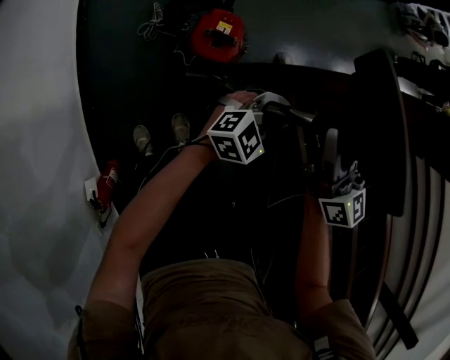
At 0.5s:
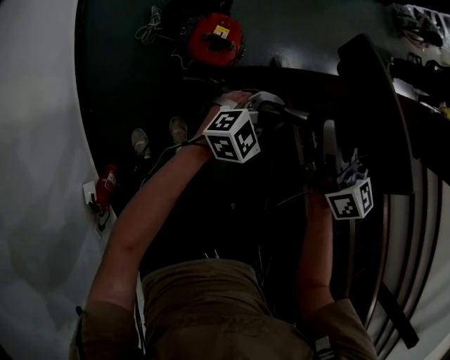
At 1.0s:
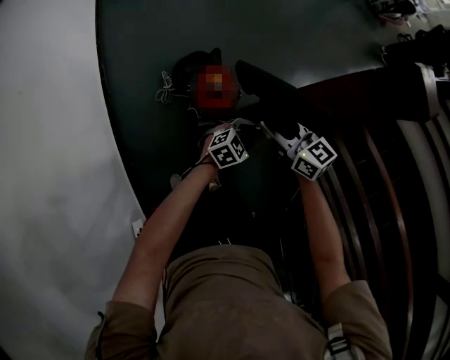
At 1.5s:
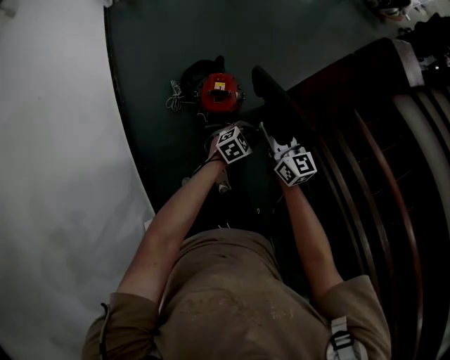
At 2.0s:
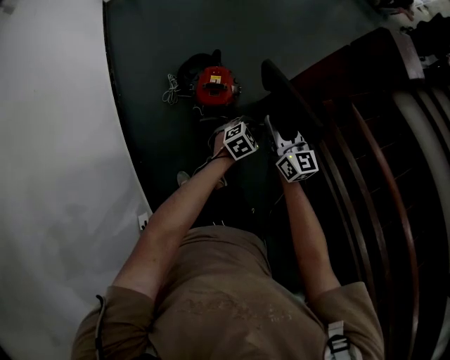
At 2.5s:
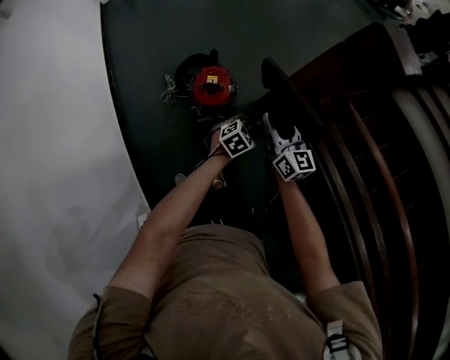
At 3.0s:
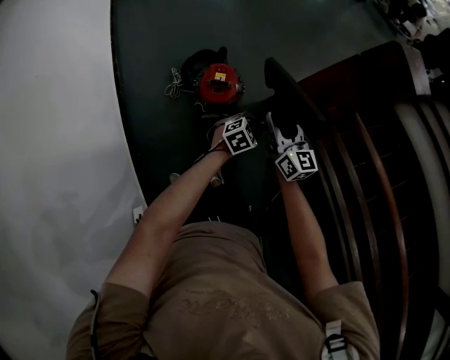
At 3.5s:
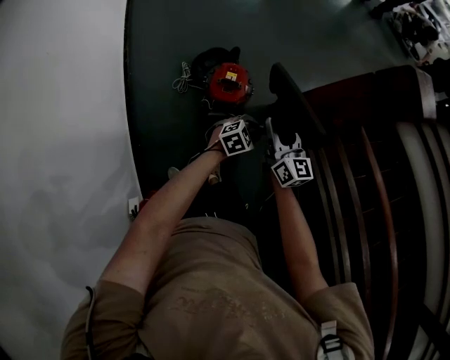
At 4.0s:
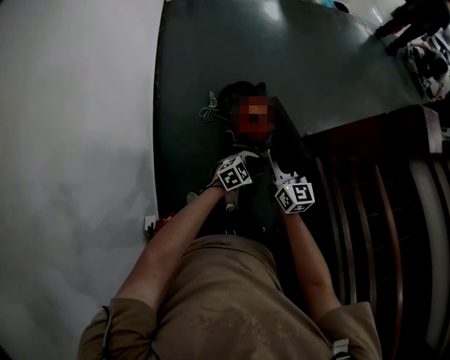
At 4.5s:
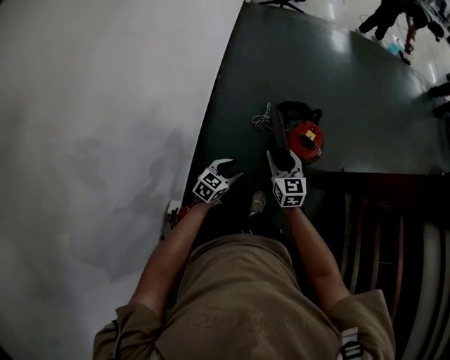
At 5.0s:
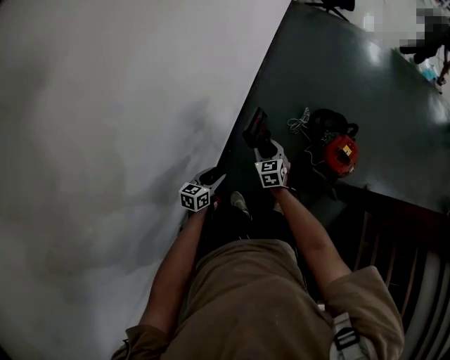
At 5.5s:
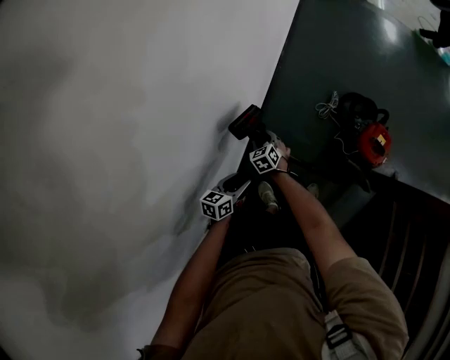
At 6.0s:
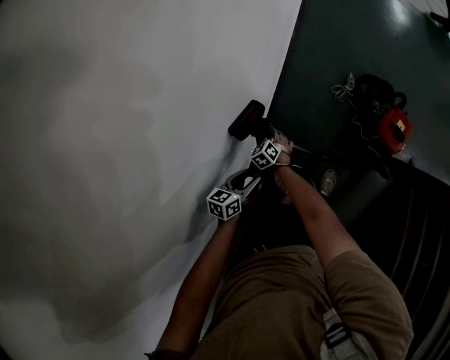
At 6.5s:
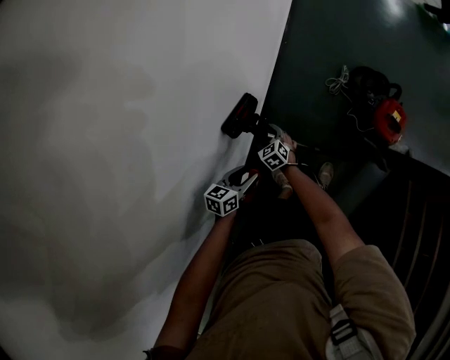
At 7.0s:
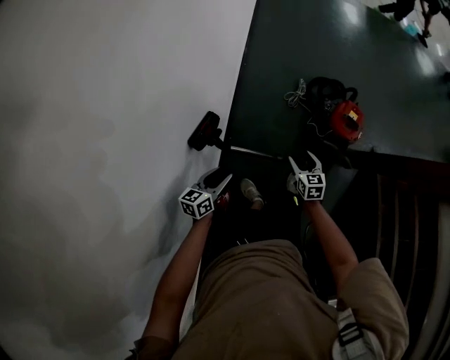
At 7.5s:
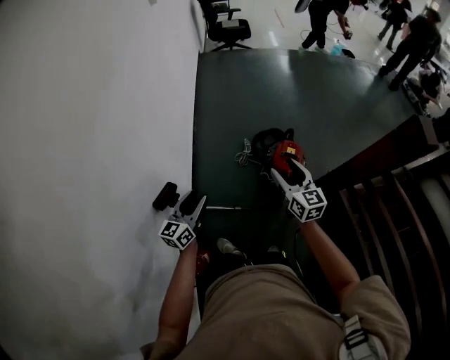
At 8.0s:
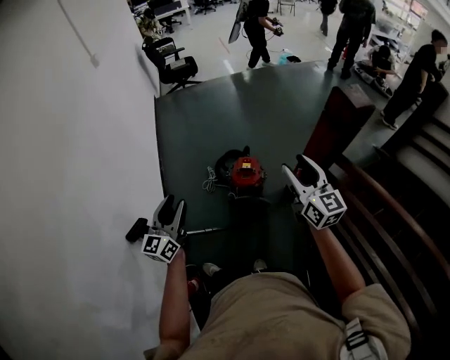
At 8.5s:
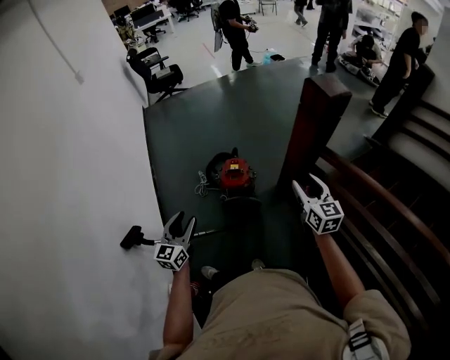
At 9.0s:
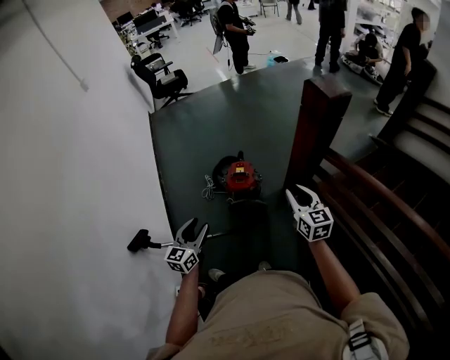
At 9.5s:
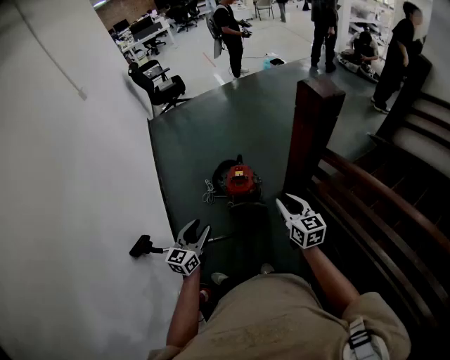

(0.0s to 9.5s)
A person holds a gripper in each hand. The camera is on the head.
0.0s - 2.0s: The grippers both shift to the right by approximately 5 cm. The left gripper angles its fingers downward, by roughly 30 degrees.
2.0s - 4.0s: The grippers both shift to the left and backward by roughly 10 cm.
4.0s - 5.5s: The pair of grippers is taken some 70 cm. The left gripper changes its angle by approximately 80 degrees, while the right gripper points its fingers some 40 degrees further downward.
5.5s - 7.5s: The right gripper heads upward and to the right, covering about 60 cm, and tilts its fingers some 40 degrees upward. The left gripper travels upward and to the right by about 30 cm, and swivels about 40 degrees.
7.5s - 9.5s: The right gripper is displaced to the right and backward by about 40 cm, and closes its fingers. Meanwhile the left gripper shifts approximately 30 cm to the right, and rotates approximately 20 degrees.

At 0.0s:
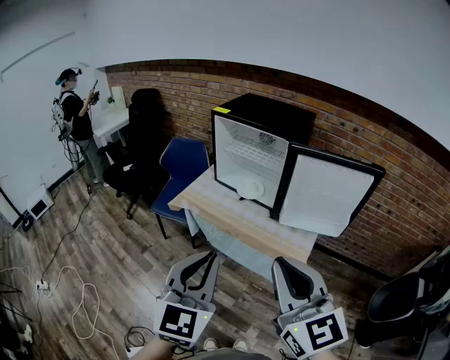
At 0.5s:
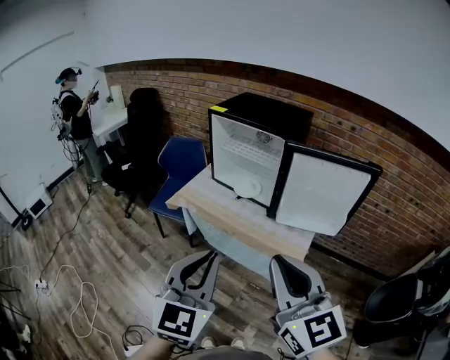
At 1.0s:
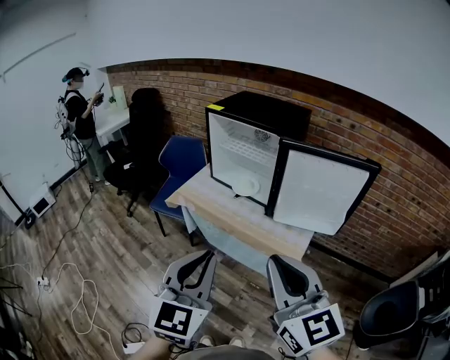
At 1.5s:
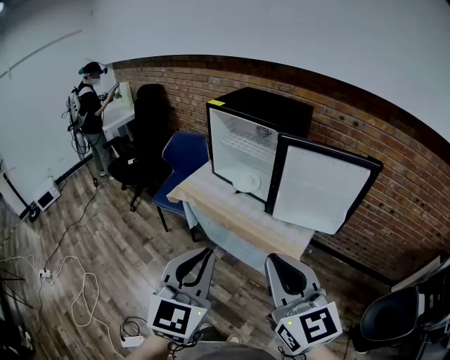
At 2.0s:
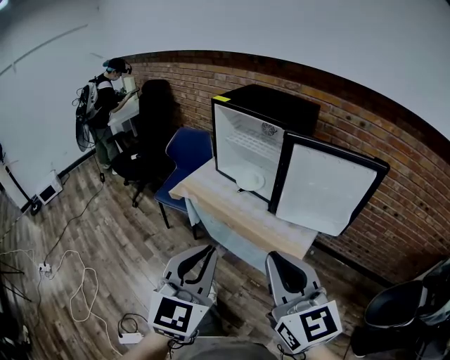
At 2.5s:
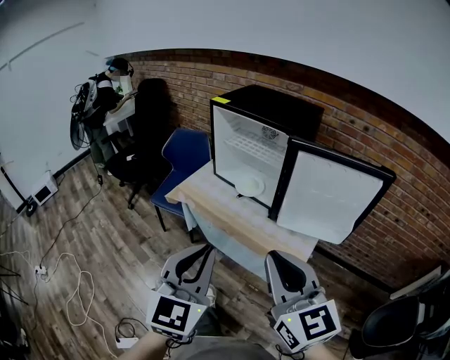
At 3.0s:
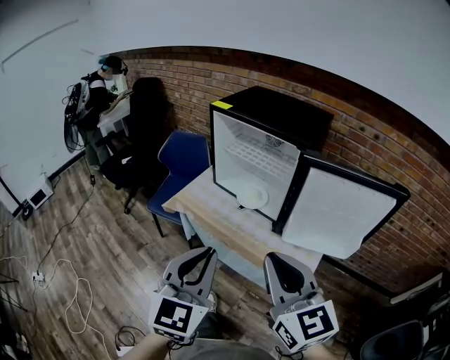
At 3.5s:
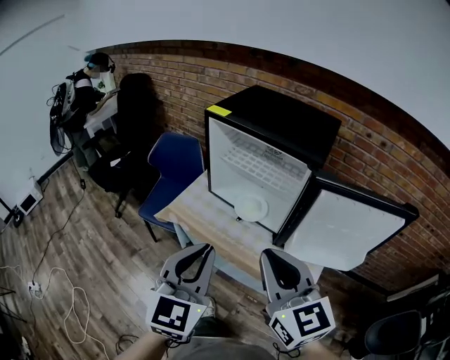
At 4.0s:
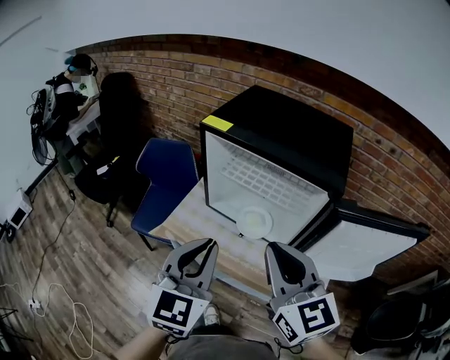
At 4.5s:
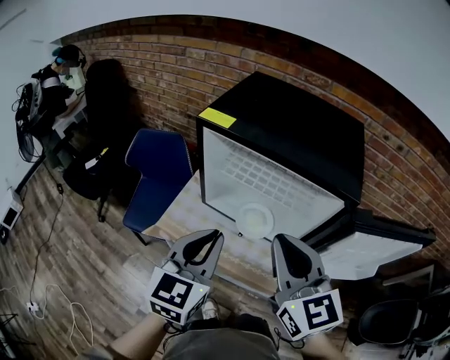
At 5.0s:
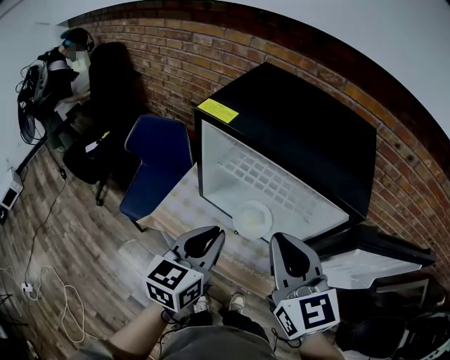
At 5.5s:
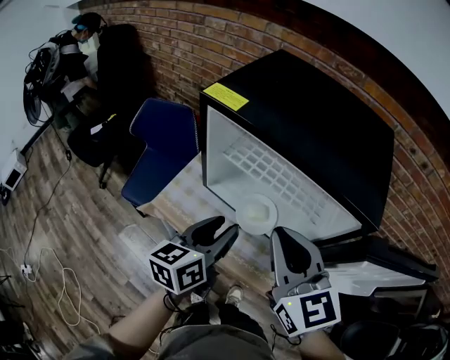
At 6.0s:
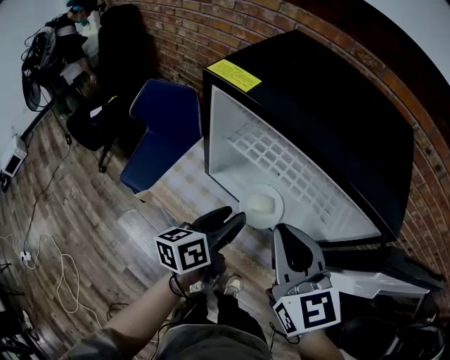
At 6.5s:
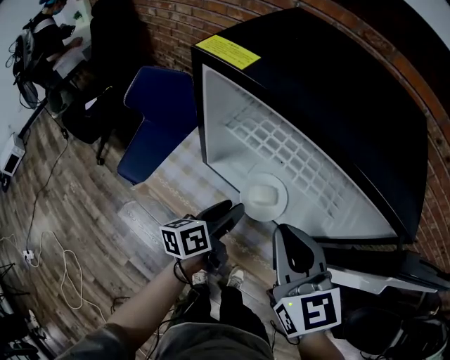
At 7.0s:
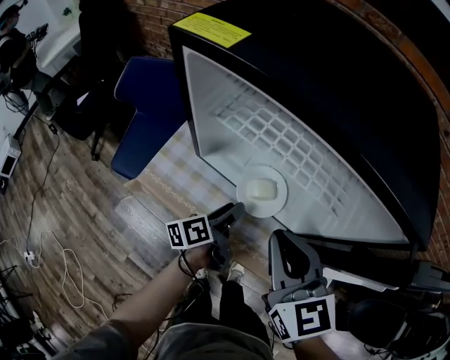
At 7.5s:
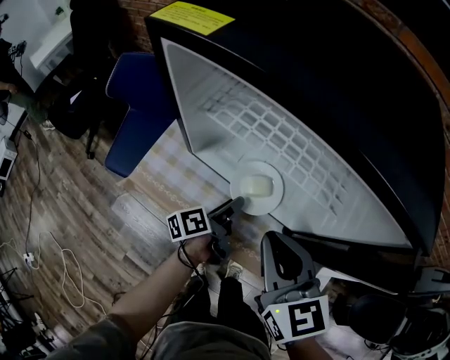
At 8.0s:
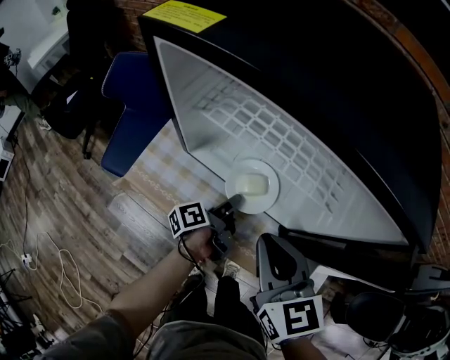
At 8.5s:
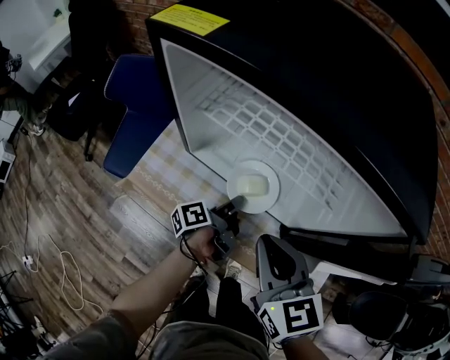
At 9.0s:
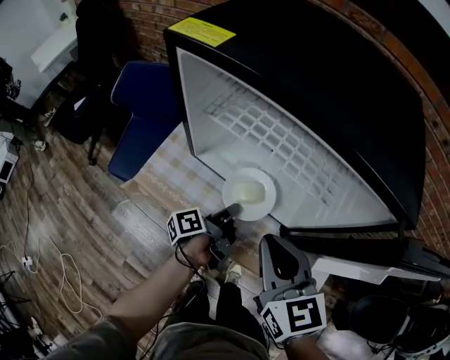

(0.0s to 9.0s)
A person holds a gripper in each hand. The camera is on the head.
0.0s - 2.0s: The left gripper is displaced to the right by some 5 cm, while the right gripper moves about 5 cm.
2.0s - 4.5s: Both grippers are carried forward, about 40 cm. The left gripper swivels about 20 degrees.
4.5s - 7.0s: The right gripper goes some 15 cm downward, while the left gripper goes roughly 30 cm downward, rotates around the line of its fingers by some 70 degrees, counterclockwise from behind, and opens.
7.0s - 9.0s: The left gripper rotates approximately 20 degrees, and closes.

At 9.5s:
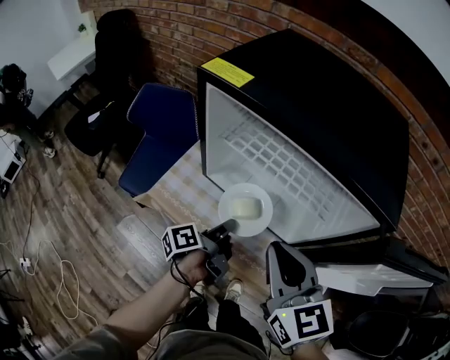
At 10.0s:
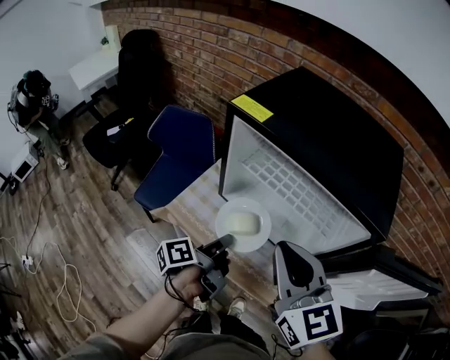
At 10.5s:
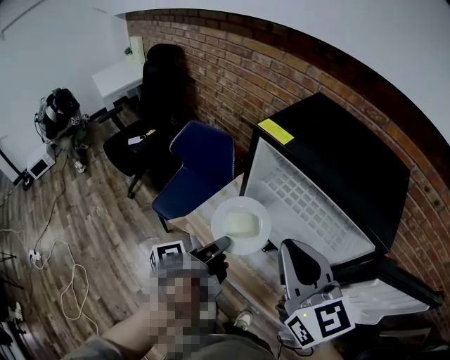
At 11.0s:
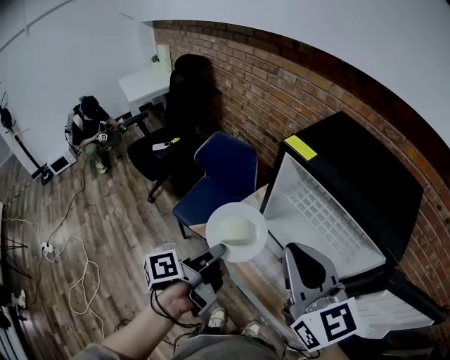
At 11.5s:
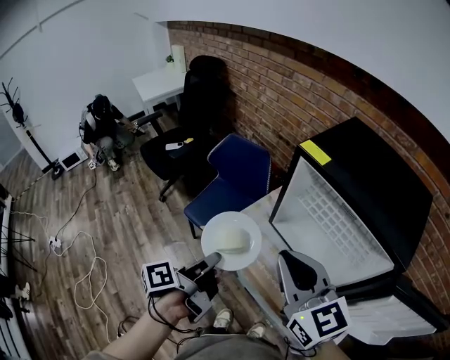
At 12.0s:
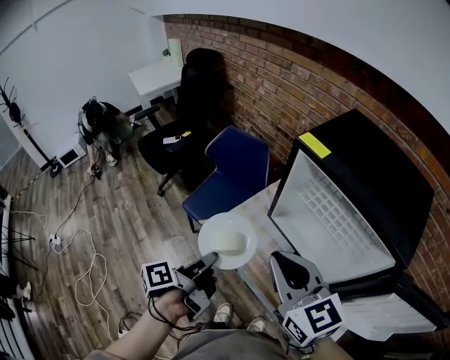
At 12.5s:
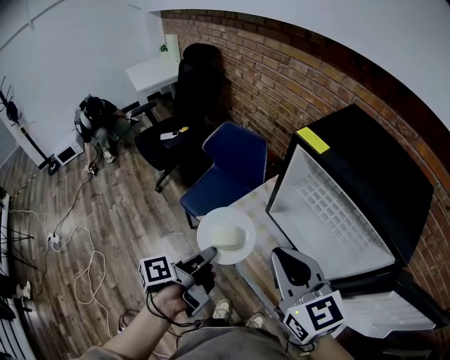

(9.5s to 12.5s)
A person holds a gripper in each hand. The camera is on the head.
9.5s - 11.0s: The left gripper is displaced to the left, upward and backward by some 25 cm. Meanwhile the right gripper is displaced upward and to the left by approximately 20 cm, and turns by roughly 30 degrees.
11.0s - 12.5s: The left gripper moves approximately 5 cm, while the right gripper moves downward, roughly 5 cm.

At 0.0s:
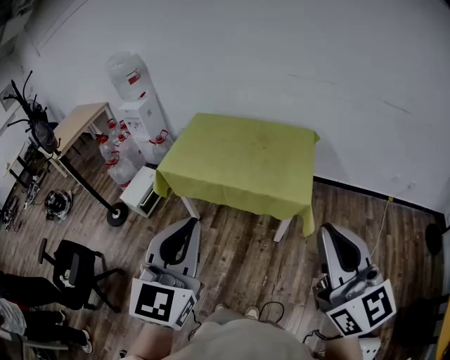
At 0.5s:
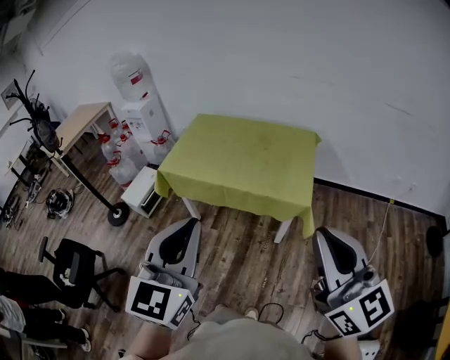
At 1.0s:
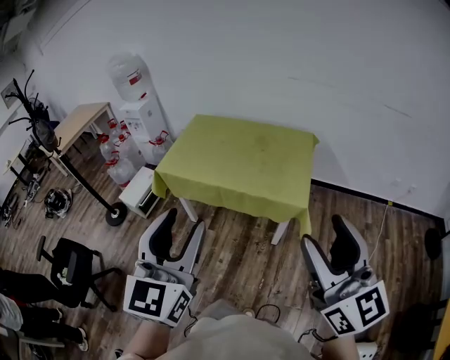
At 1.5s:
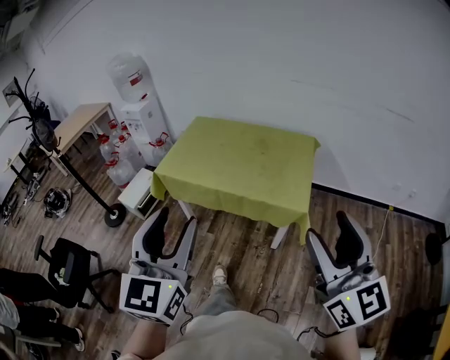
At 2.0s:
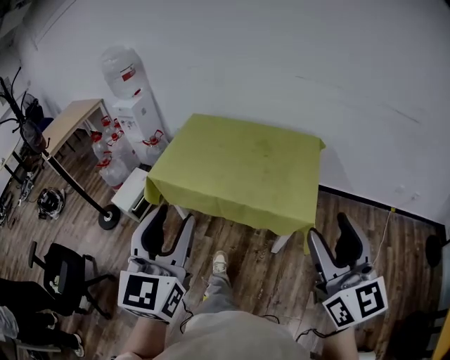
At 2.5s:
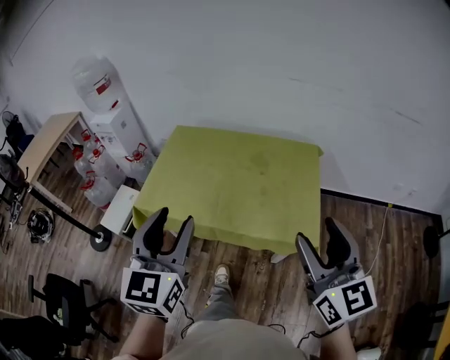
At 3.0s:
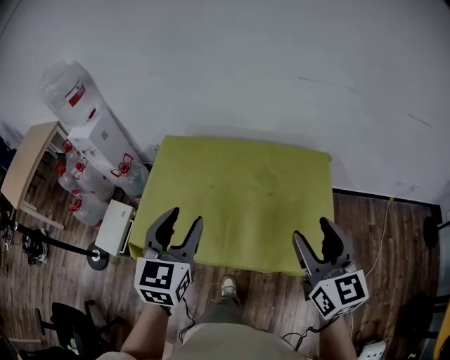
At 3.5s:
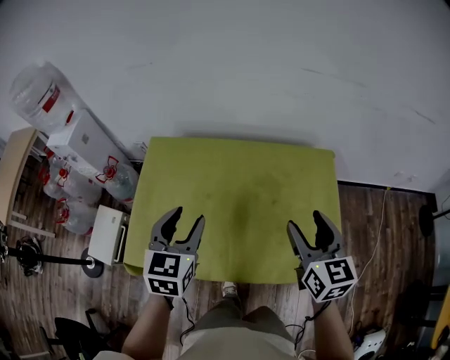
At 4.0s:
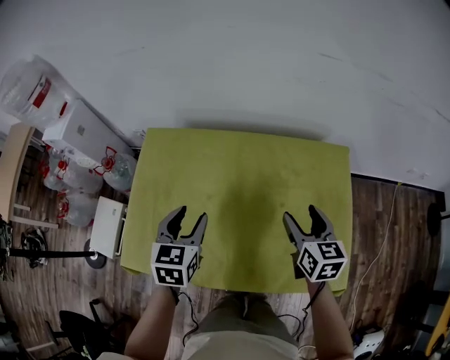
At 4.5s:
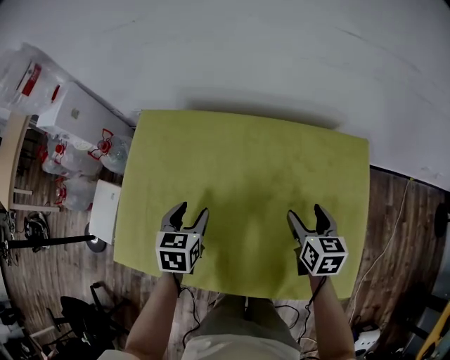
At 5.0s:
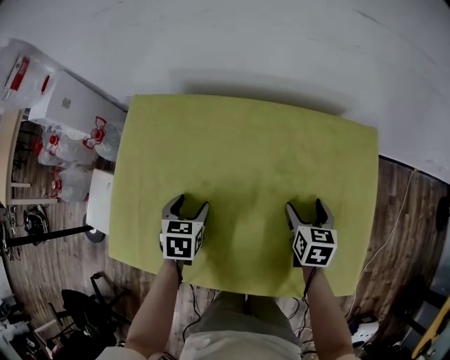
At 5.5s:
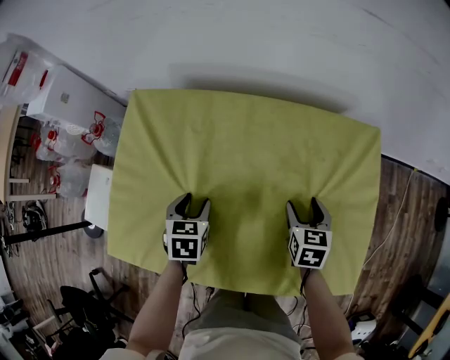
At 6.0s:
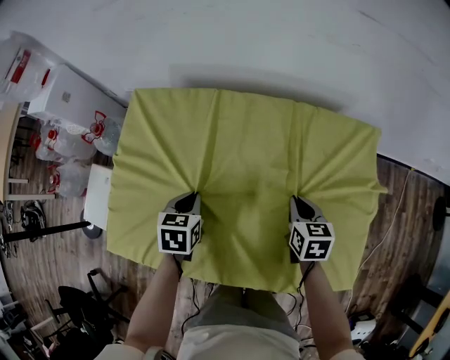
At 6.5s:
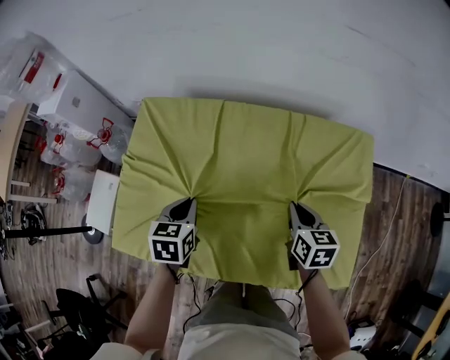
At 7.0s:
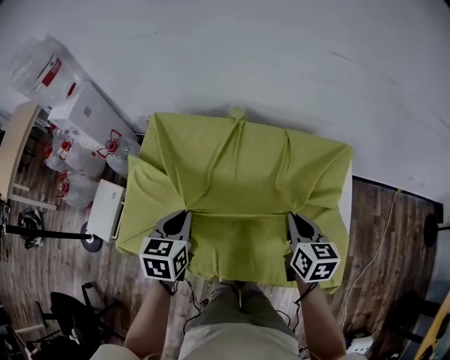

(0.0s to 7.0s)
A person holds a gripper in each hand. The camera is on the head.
0.0s - 2.0s: The right gripper shifts roughly 15 cm forward and downward, and opens up, while the left gripper moves forward, some 15 cm, and opens up.
2.0s - 3.5s: Both grippers are carried forward, some 50 cm. The left gripper turns by about 30 degrees. Meanwhile the right gripper swivels approximately 30 degrees.
3.5s - 5.0s: The left gripper travels downward by about 30 cm, and swivels about 30 degrees; the right gripper is displaced downward and forward by approximately 35 cm, and swivels about 30 degrees.
5.0s - 7.0s: The two grippers go approximately 20 cm upward and backward. The right gripper closes; the left gripper closes.
